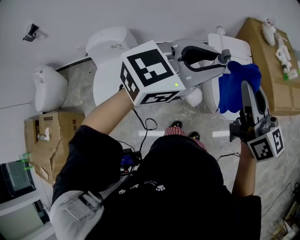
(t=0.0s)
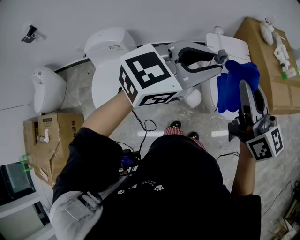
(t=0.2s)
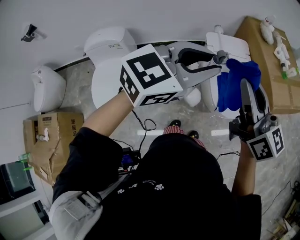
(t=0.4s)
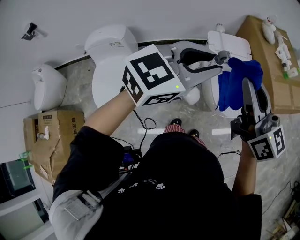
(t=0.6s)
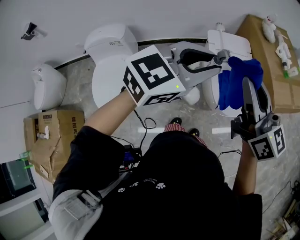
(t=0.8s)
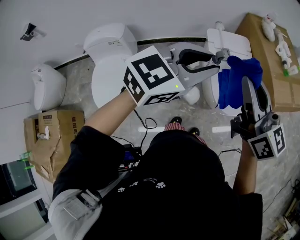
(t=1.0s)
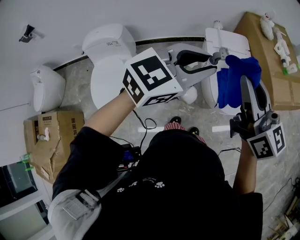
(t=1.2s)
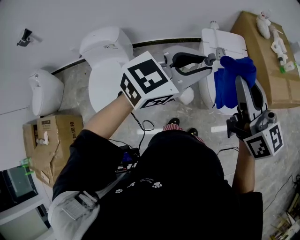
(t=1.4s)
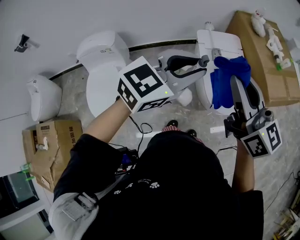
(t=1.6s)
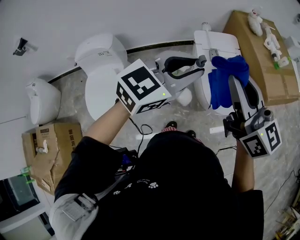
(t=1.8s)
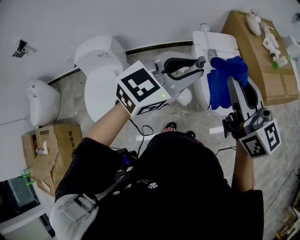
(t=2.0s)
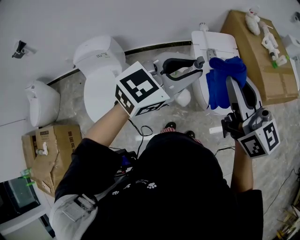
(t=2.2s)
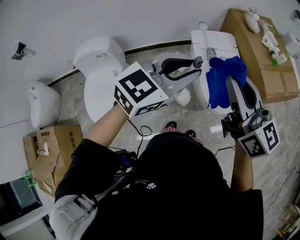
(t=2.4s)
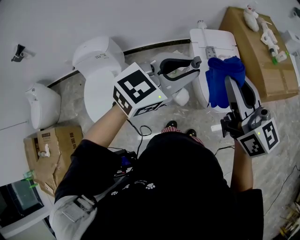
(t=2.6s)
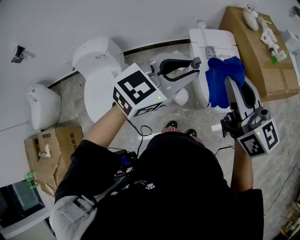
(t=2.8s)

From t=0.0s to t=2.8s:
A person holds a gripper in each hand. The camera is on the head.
From t=0.0s to t=2.8s: The grippers stay close to where they were, moving slightly.

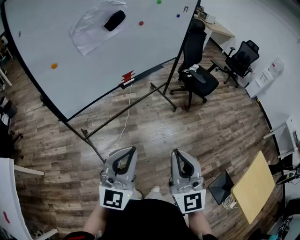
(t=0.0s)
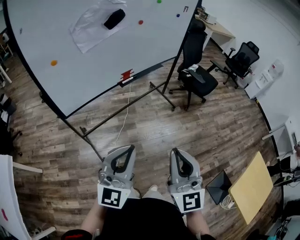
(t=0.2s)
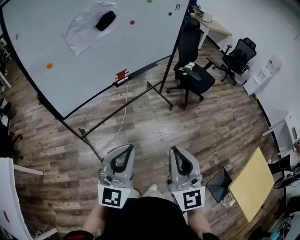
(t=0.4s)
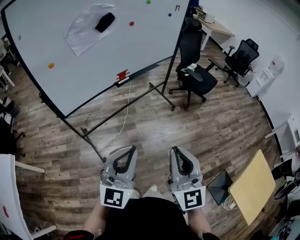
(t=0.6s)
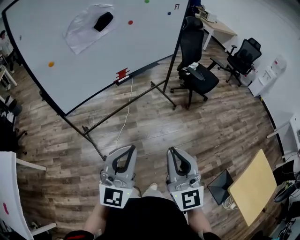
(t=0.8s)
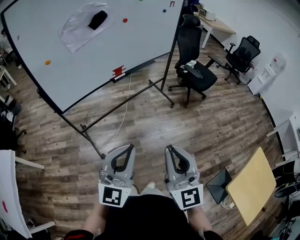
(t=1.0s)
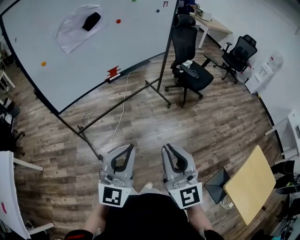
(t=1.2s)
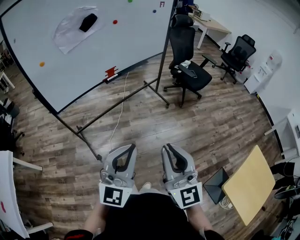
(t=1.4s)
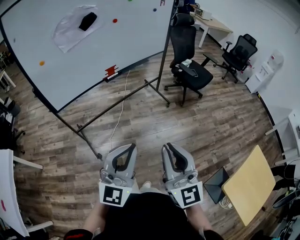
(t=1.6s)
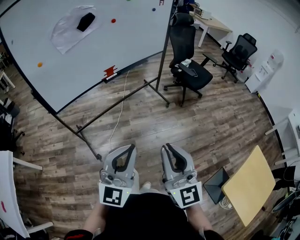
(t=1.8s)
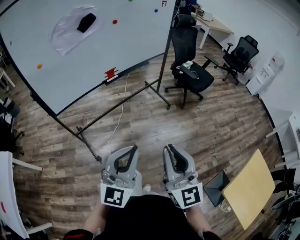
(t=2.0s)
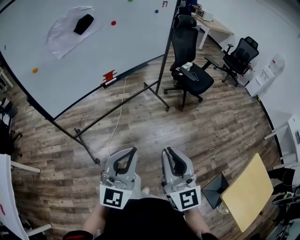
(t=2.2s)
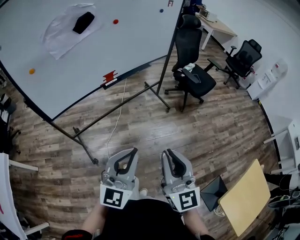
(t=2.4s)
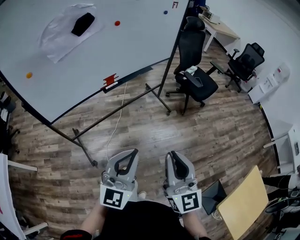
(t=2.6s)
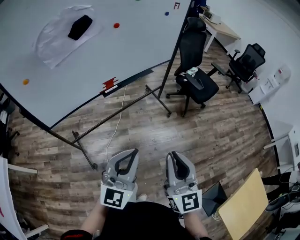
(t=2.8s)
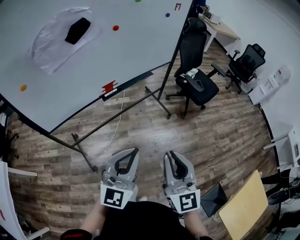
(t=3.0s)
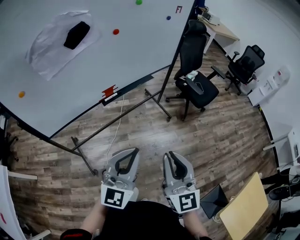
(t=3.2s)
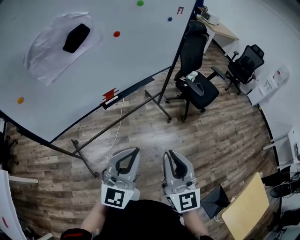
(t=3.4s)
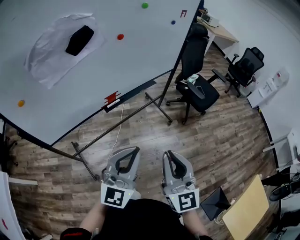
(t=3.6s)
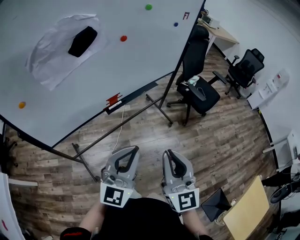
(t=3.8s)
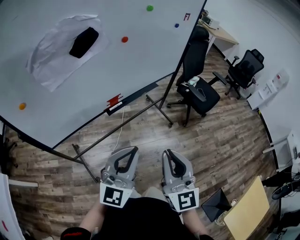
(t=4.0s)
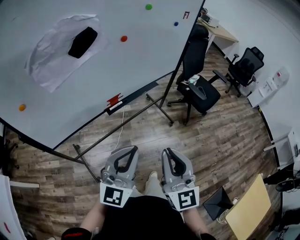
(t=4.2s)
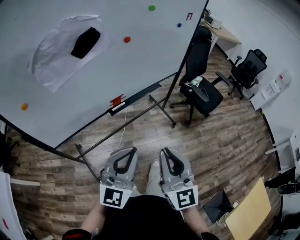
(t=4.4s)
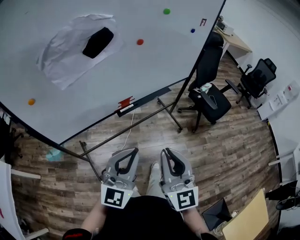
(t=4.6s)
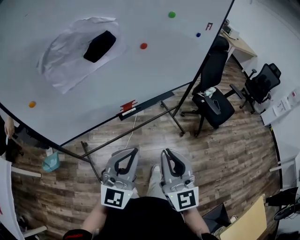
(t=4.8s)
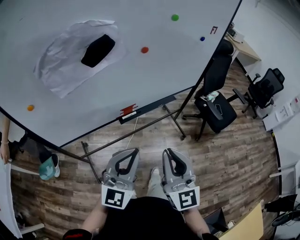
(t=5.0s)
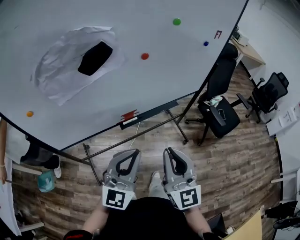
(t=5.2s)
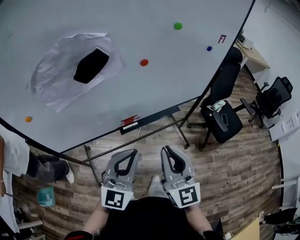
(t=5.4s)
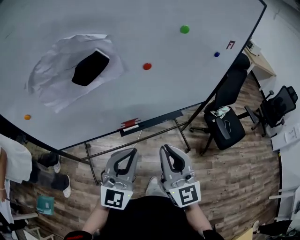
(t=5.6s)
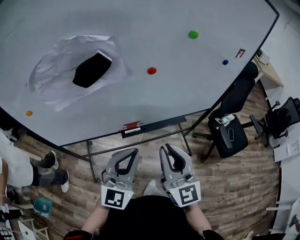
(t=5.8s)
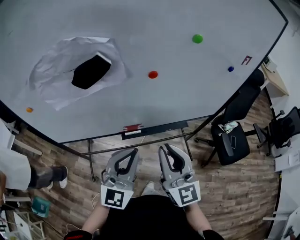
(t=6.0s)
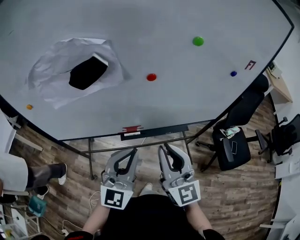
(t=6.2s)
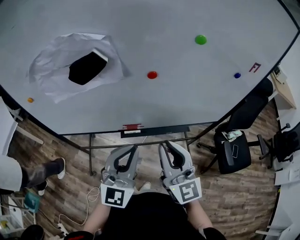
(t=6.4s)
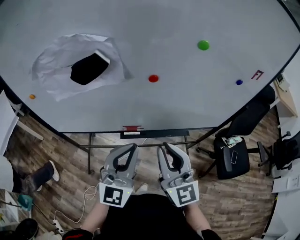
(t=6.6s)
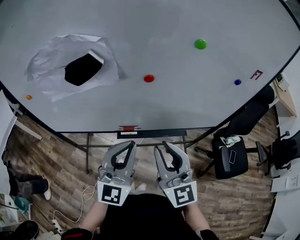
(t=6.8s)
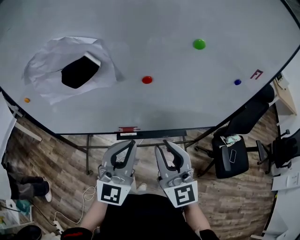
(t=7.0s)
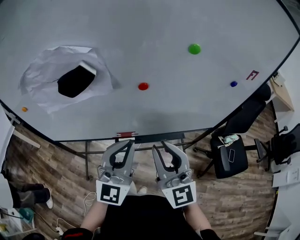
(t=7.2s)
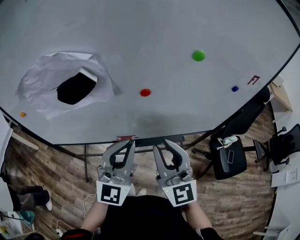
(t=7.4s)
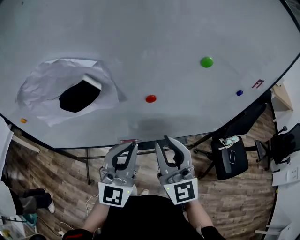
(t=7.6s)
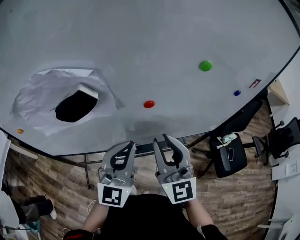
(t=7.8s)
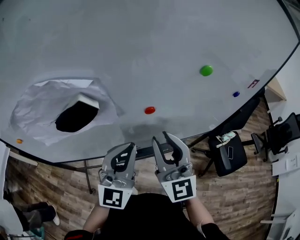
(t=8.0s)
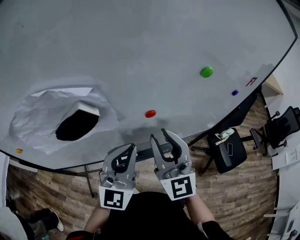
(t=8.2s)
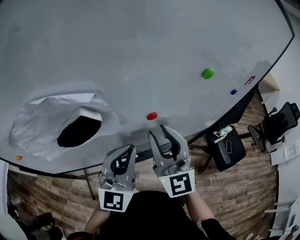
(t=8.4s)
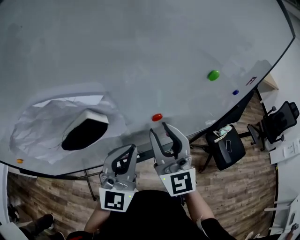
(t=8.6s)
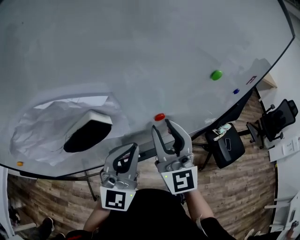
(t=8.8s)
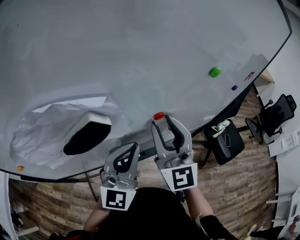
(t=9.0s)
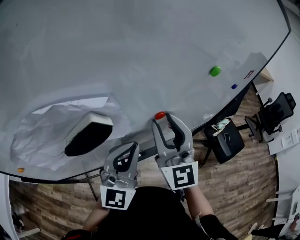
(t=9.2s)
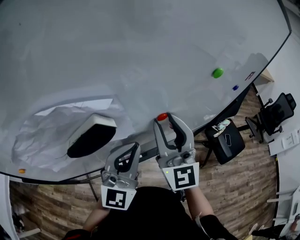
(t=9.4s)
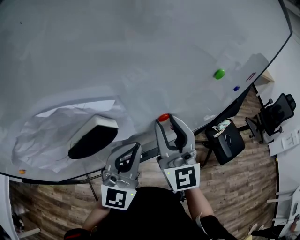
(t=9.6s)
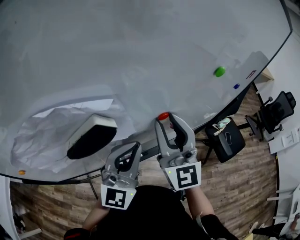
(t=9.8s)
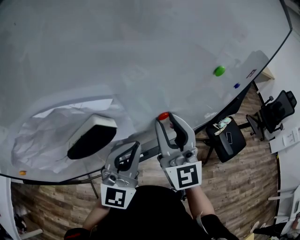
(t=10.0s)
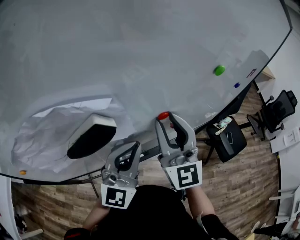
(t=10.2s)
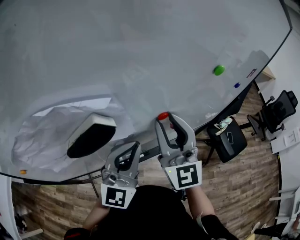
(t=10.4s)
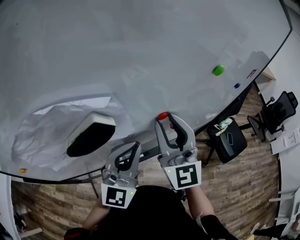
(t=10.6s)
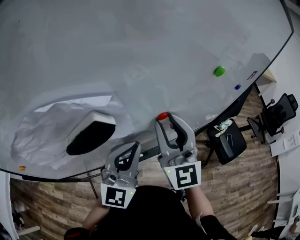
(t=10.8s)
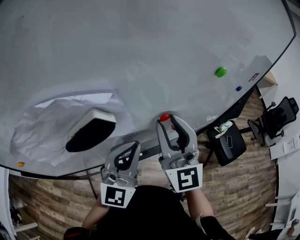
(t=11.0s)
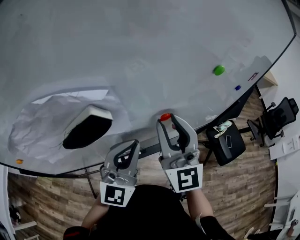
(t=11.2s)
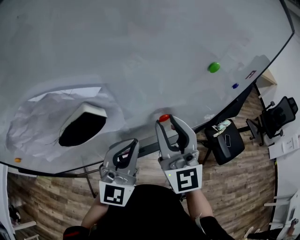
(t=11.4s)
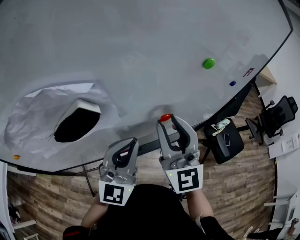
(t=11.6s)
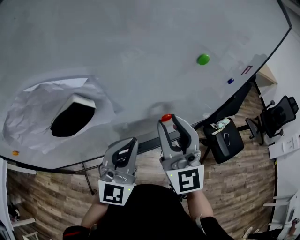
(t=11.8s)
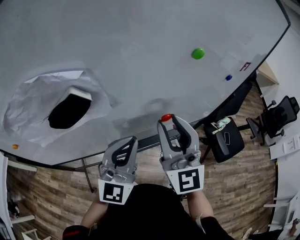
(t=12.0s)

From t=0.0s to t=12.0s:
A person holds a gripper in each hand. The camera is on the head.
From t=0.0s to t=1.6s: The grippers both shift to the right by about 15 cm.
From t=1.6s to t=3.0s: The grippers both shift forward by some 20 cm.
From t=3.0s to t=4.4s: The grippers both shift to the left and forward by some 10 cm.
From t=4.4s to t=6.0s: The right gripper moves roughly 25 cm, and swivels some 30 degrees; the left gripper ends up approximately 20 cm from where it was, and rotates about 30 degrees.
From t=6.0s to t=7.6s: Both grippers move forward, about 10 cm.
From t=7.6s to t=9.0s: The right gripper heads forward, covering roughly 10 cm, while the left gripper heads forward, covering approximately 5 cm.
From t=9.0s to t=10.4s: Both grippers stay put.
From t=10.4s to t=12.0s: The left gripper ends up approximately 5 cm from where it was. The right gripper heads to the right and backward, covering roughly 10 cm.

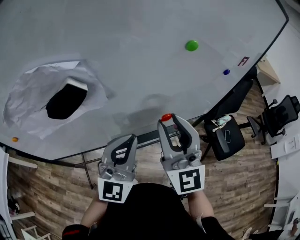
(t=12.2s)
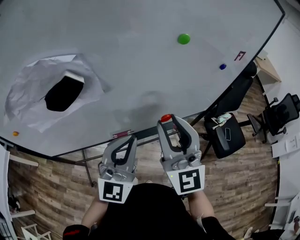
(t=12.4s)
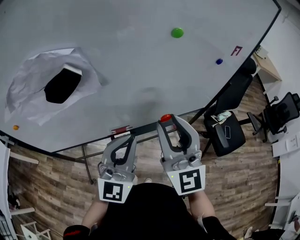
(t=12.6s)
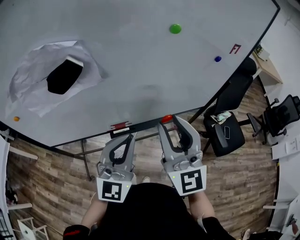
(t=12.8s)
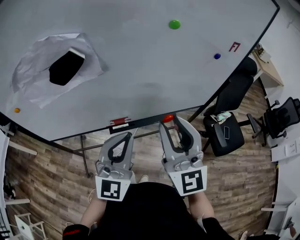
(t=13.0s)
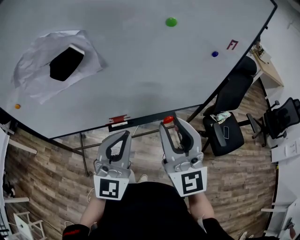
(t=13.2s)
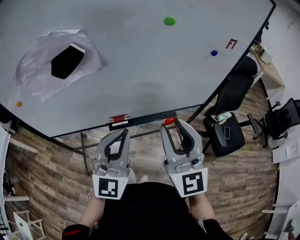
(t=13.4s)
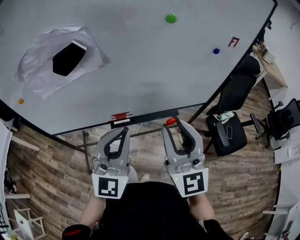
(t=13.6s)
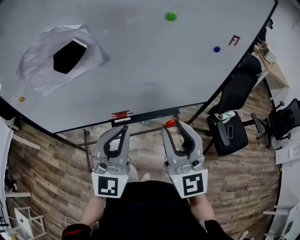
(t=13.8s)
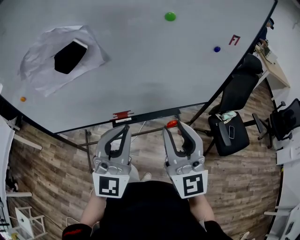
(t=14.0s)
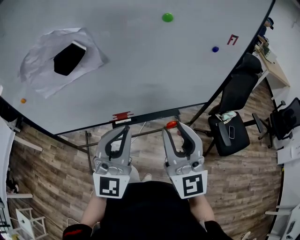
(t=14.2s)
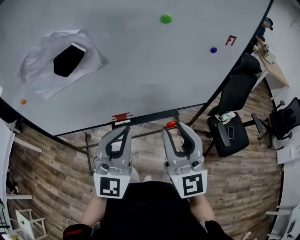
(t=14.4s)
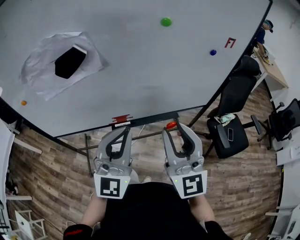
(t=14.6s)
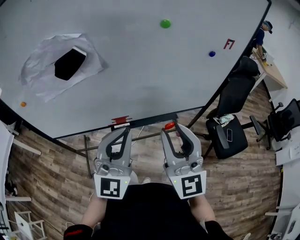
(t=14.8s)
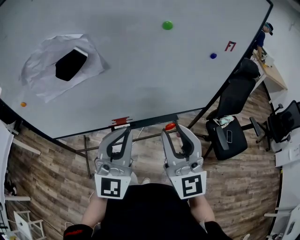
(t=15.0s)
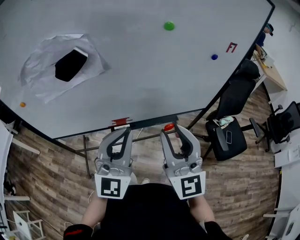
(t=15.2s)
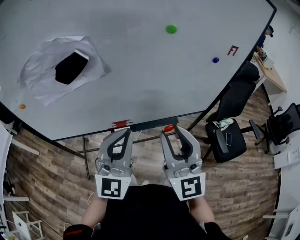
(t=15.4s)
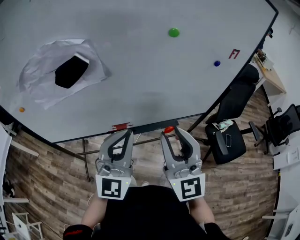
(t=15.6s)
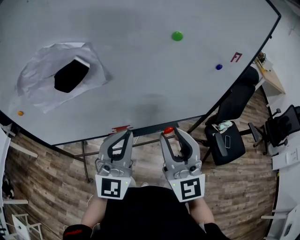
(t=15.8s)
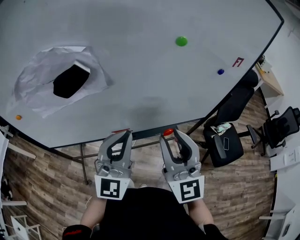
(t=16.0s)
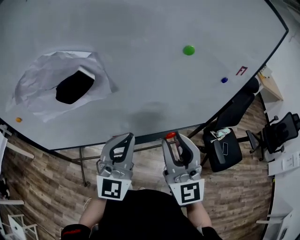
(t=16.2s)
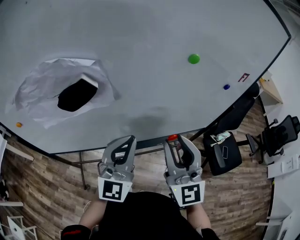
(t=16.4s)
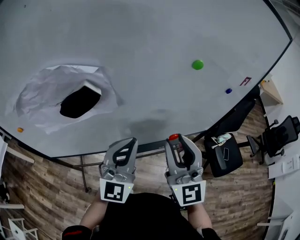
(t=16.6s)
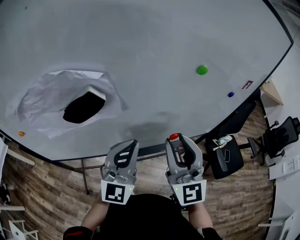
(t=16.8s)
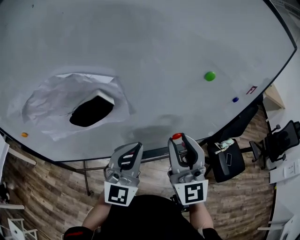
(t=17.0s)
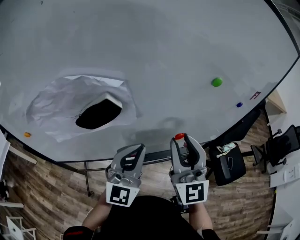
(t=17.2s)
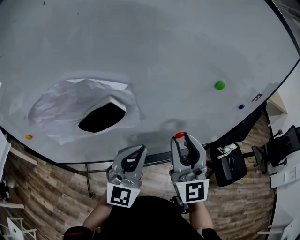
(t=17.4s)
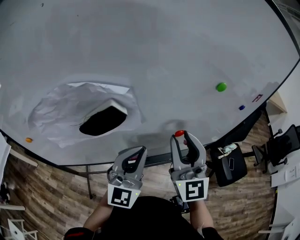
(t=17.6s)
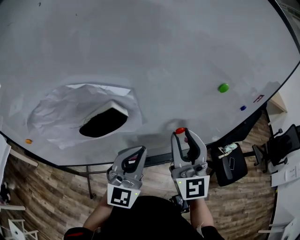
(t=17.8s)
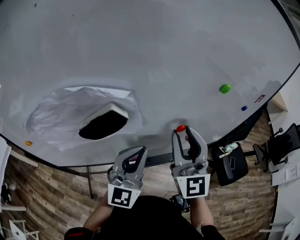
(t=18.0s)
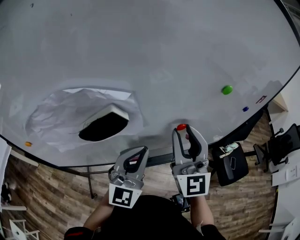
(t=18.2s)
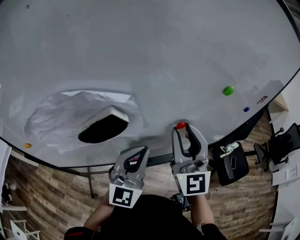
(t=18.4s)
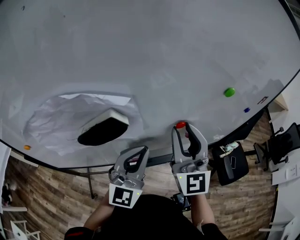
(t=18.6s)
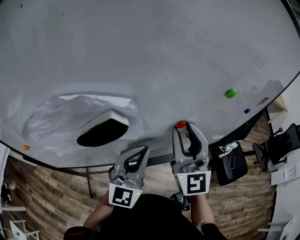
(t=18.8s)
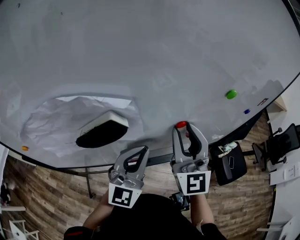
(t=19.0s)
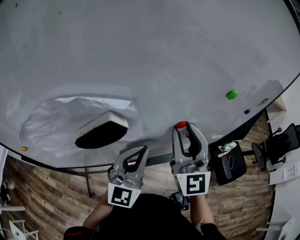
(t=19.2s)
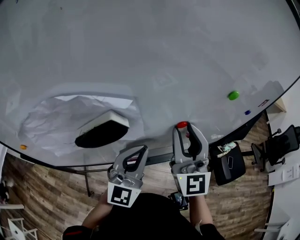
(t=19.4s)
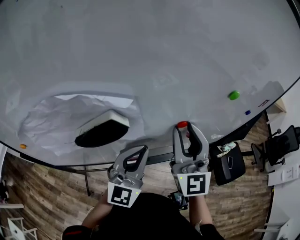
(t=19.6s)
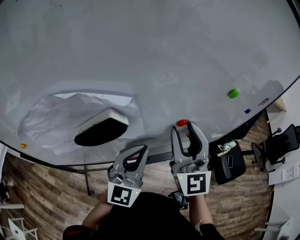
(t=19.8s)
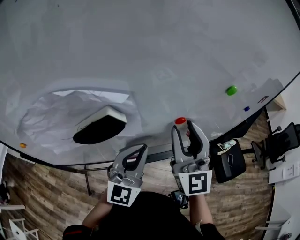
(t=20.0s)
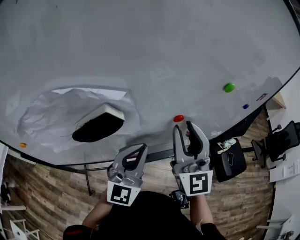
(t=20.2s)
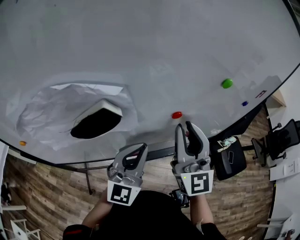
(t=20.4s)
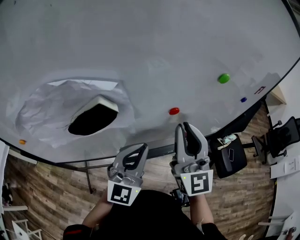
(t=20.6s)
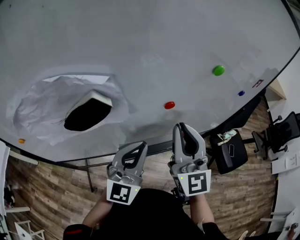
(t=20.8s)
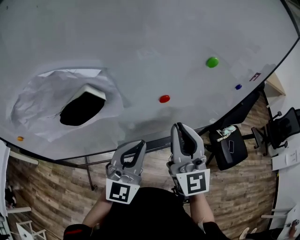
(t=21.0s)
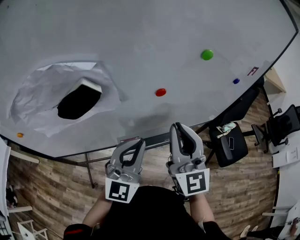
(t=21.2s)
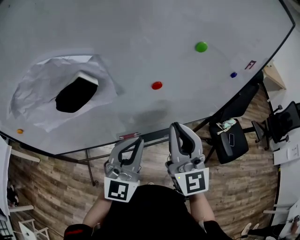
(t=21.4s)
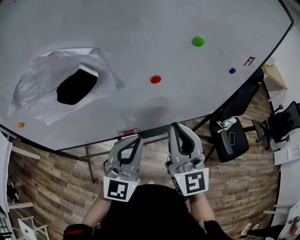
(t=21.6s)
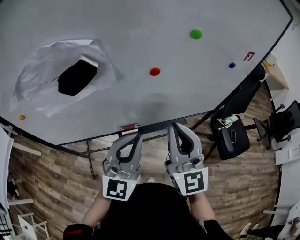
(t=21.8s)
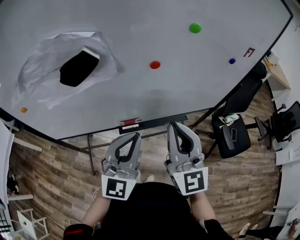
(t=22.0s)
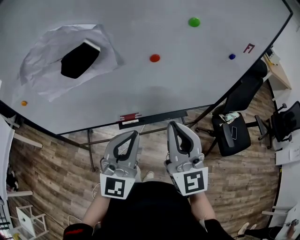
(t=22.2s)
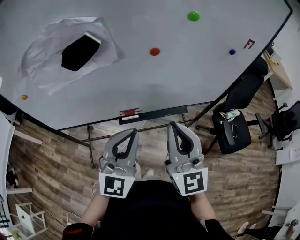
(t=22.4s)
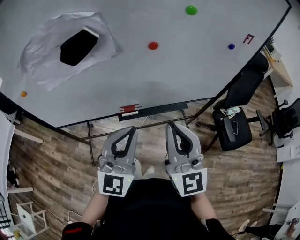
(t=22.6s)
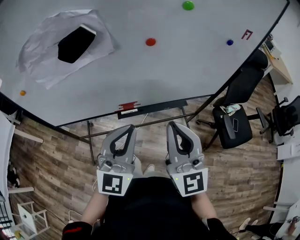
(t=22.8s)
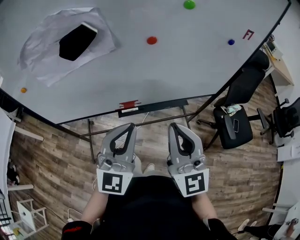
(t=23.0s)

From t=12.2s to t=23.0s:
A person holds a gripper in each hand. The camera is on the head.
From t=12.2s to t=13.8s: The left gripper goes roughly 10 cm backward; the right gripper moves backward and to the right, some 15 cm.
From t=13.8s to t=15.2s: The grippers stay close to where they were, moving slightly.
From t=15.2s to t=16.8s: The right gripper is displaced forward and to the left by roughly 10 cm, while the left gripper shifts roughly 10 cm forward.
From t=16.8s to t=18.4s: The right gripper heads forward, covering approximately 10 cm.
From t=18.4s to t=20.0s: The grippers move only a little.
From t=20.0s to t=21.4s: The grippers both shift backward by about 10 cm. The right gripper closes its fingers.
From t=21.4s to t=23.0s: The two grippers go roughly 10 cm backward.
